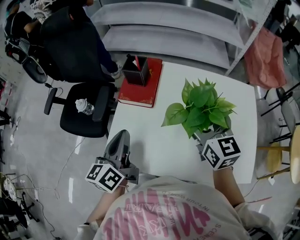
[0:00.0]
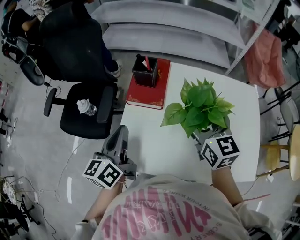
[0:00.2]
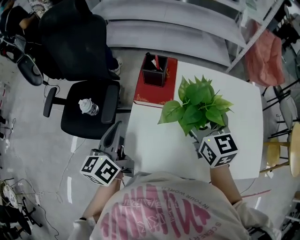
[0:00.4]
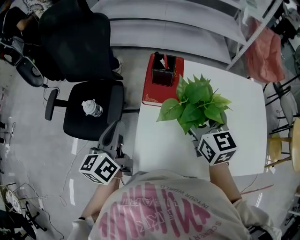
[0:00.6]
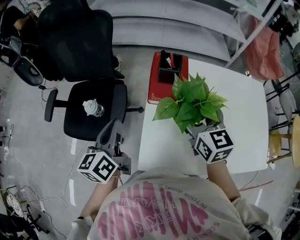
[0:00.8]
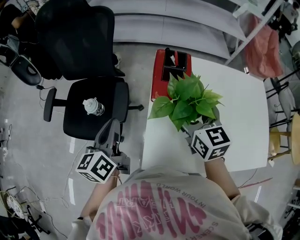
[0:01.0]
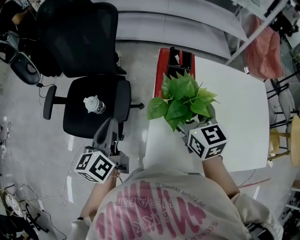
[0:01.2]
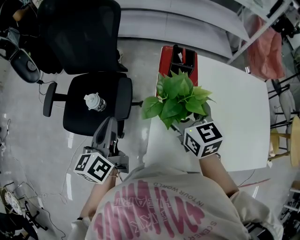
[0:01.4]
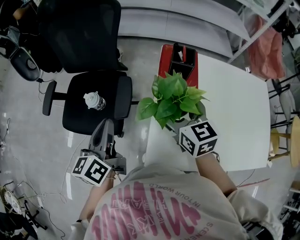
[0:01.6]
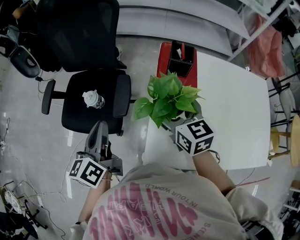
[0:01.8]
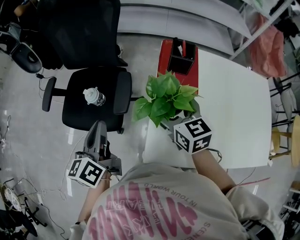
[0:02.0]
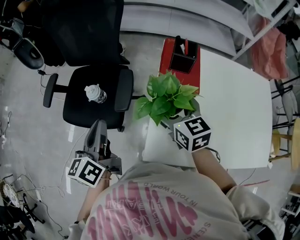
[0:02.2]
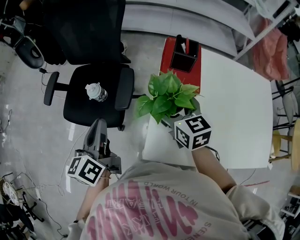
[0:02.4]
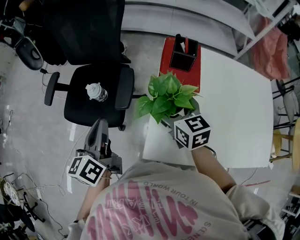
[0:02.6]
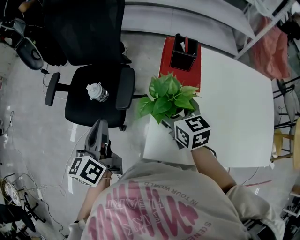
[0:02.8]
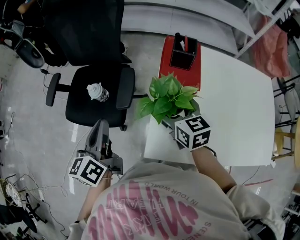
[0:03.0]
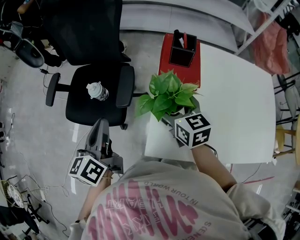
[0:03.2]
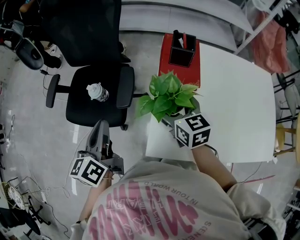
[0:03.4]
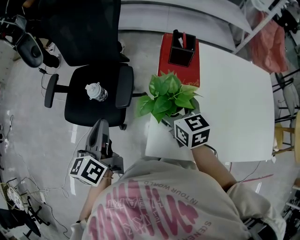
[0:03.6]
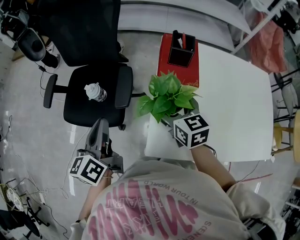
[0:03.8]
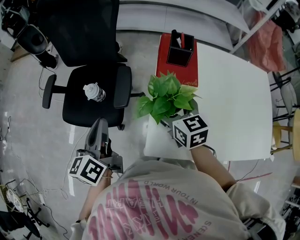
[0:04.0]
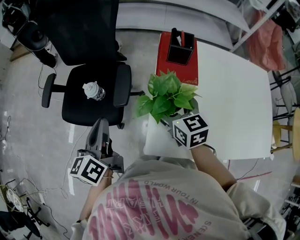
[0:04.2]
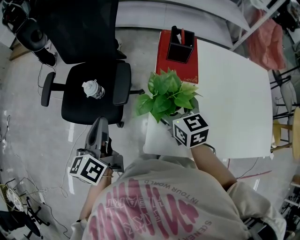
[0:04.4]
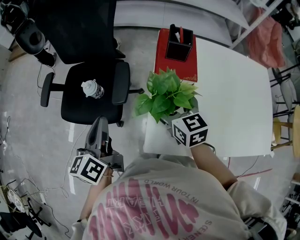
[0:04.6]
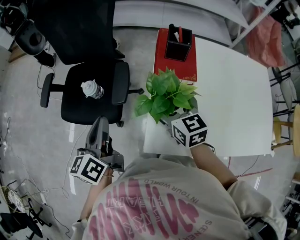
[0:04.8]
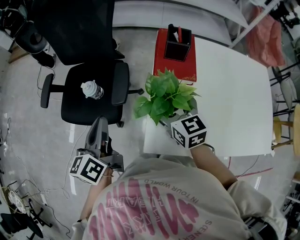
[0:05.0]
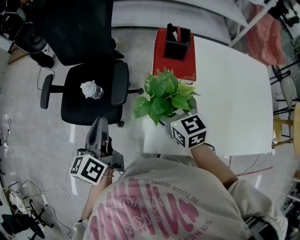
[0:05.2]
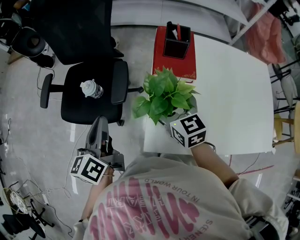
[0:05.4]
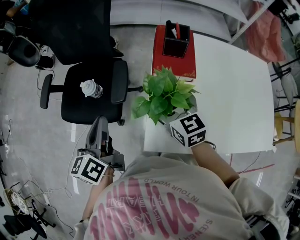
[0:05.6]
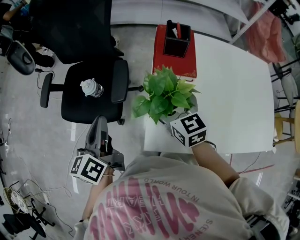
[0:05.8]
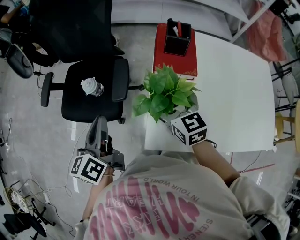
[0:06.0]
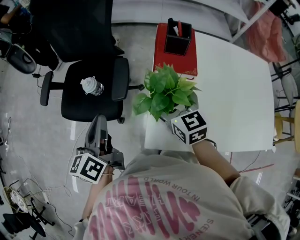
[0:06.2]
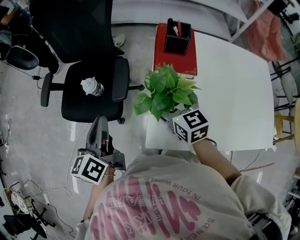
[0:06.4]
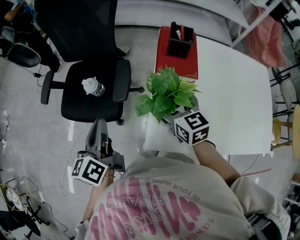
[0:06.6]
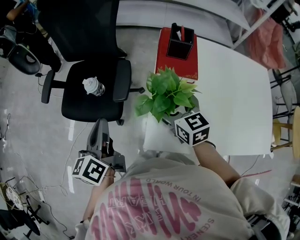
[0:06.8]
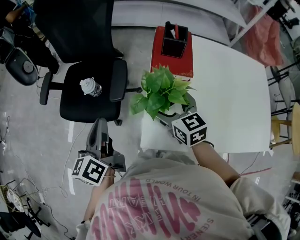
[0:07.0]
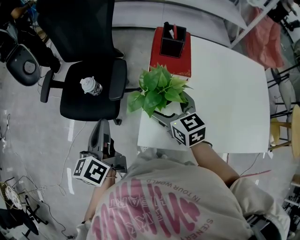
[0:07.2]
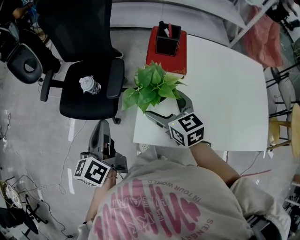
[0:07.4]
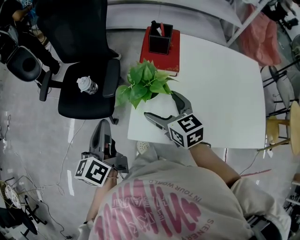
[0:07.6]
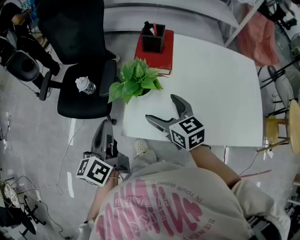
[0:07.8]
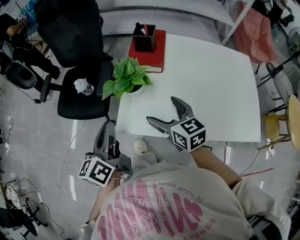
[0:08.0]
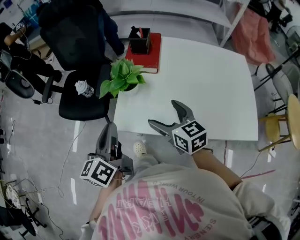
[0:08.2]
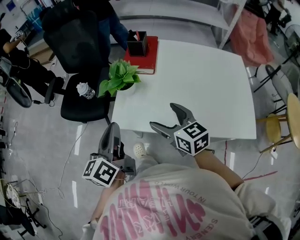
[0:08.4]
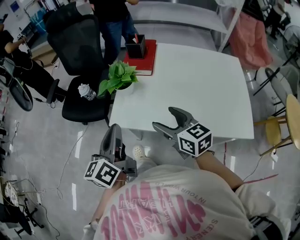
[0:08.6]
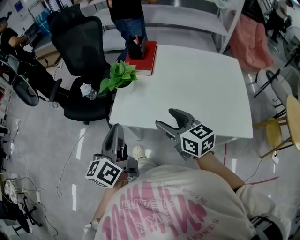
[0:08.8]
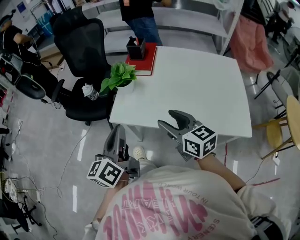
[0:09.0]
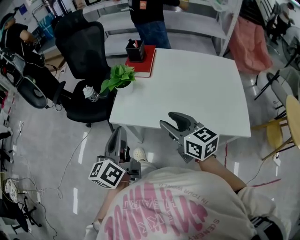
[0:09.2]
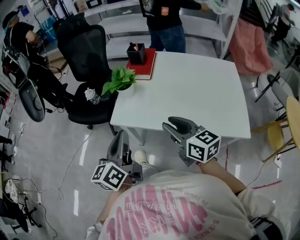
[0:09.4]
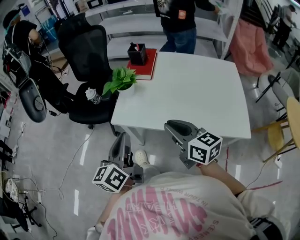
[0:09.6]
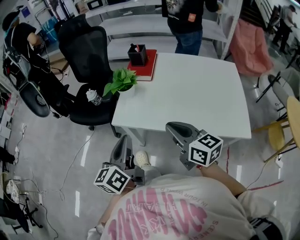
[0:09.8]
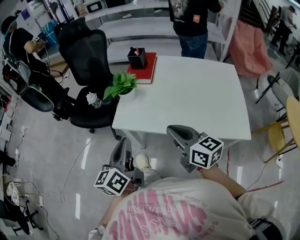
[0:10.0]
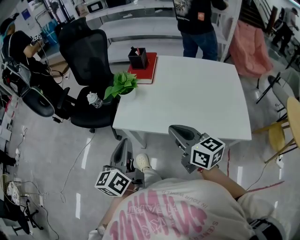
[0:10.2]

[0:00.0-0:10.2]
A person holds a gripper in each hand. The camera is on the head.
0:00.0 to 0:01.4: Both grippers travel together to the left, about 30 cm.
0:01.4 to 0:03.0: The left gripper is displaced backward by approximately 5 cm, while the right gripper moves downward, some 5 cm.
0:03.0 to 0:04.4: The two grippers keep their place.
0:04.4 to 0:07.2: There are only small adjustments of the grippers.
0:07.2 to 0:08.8: The grippers both shift backward and to the right by about 30 cm. The right gripper closes its fingers.
0:08.8 to 0:10.2: The grippers both shift backward by some 5 cm. The right gripper closes up.

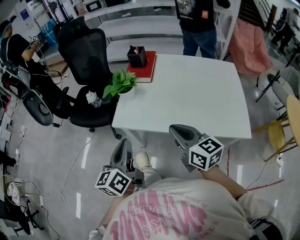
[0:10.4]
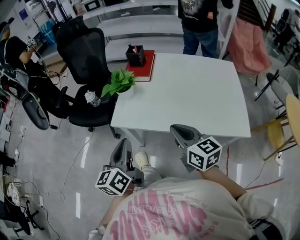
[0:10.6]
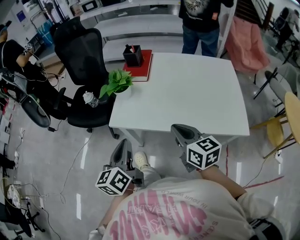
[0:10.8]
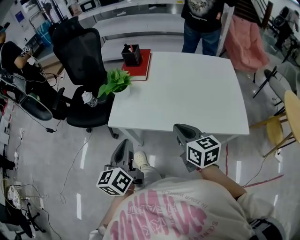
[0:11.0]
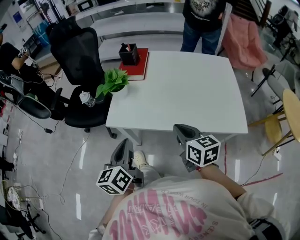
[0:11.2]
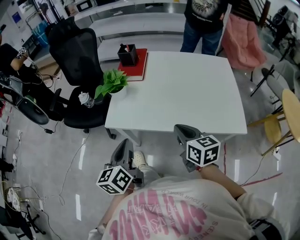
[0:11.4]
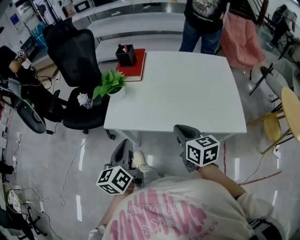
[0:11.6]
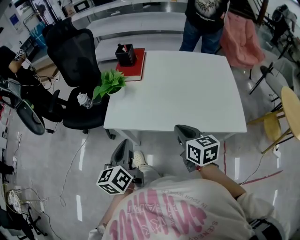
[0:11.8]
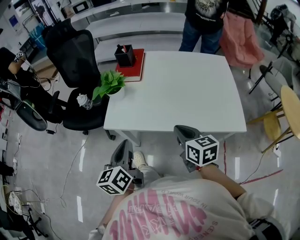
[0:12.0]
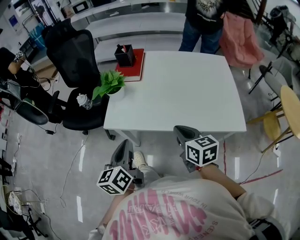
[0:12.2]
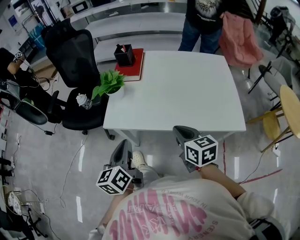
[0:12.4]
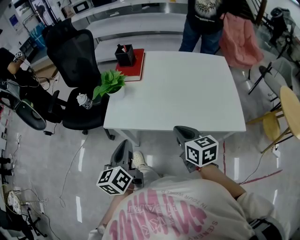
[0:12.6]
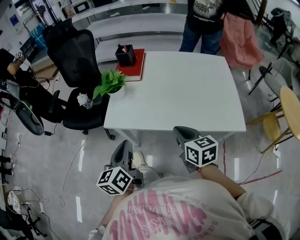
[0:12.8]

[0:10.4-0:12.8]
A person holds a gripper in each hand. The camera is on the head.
0:10.4 to 0:11.6: The right gripper travels downward and to the right by about 10 cm.
0:11.6 to 0:12.8: The grippers stay close to where they were, moving slightly.

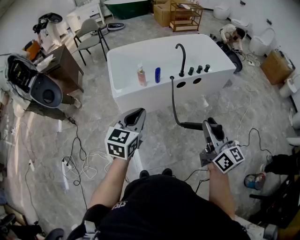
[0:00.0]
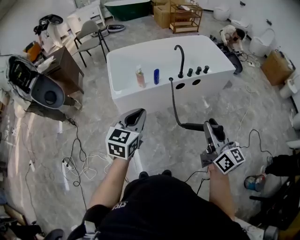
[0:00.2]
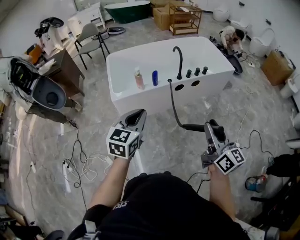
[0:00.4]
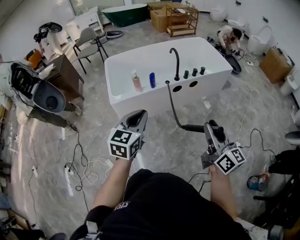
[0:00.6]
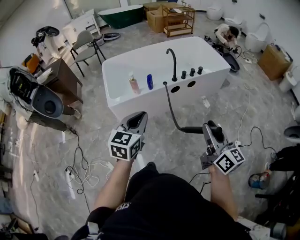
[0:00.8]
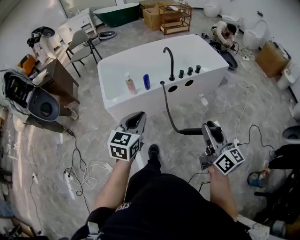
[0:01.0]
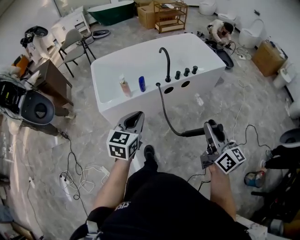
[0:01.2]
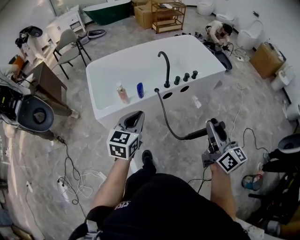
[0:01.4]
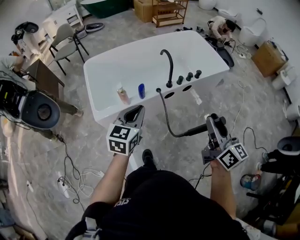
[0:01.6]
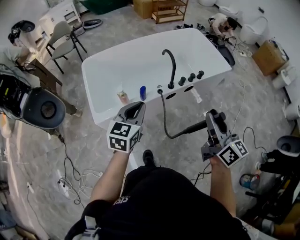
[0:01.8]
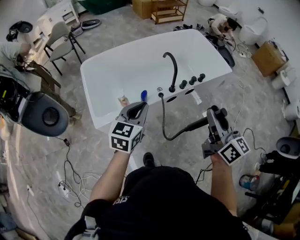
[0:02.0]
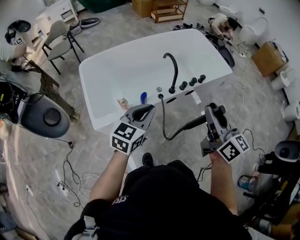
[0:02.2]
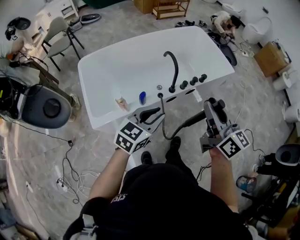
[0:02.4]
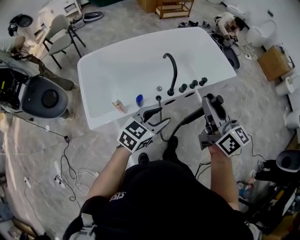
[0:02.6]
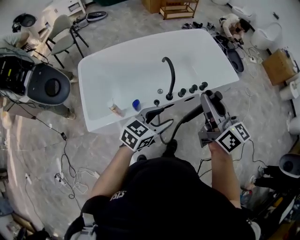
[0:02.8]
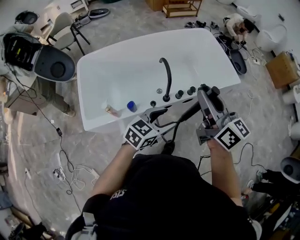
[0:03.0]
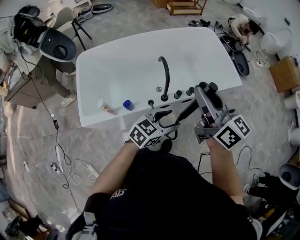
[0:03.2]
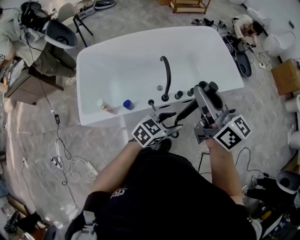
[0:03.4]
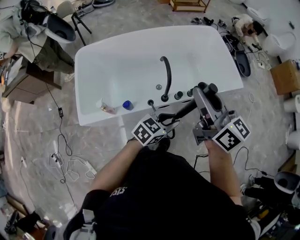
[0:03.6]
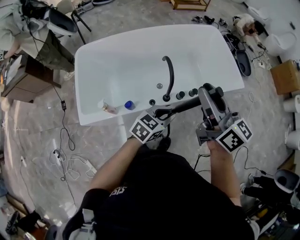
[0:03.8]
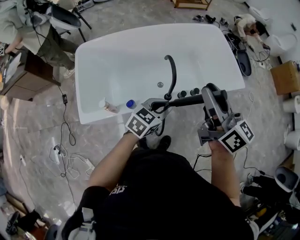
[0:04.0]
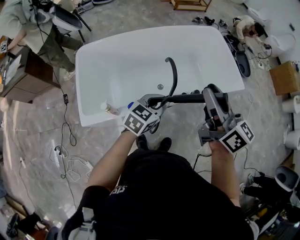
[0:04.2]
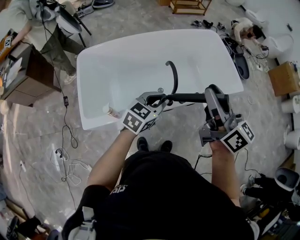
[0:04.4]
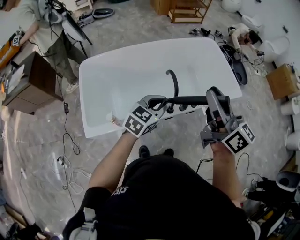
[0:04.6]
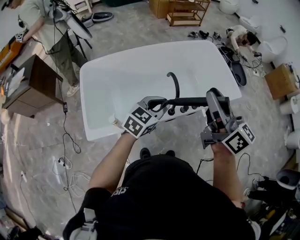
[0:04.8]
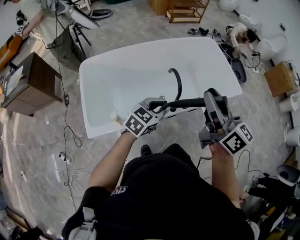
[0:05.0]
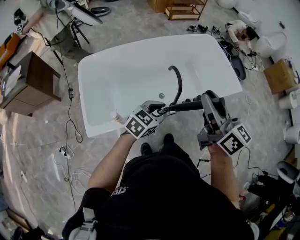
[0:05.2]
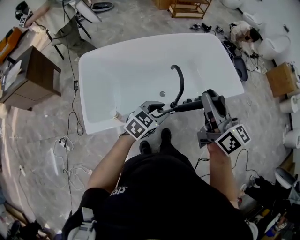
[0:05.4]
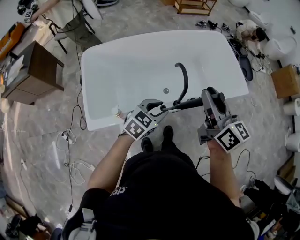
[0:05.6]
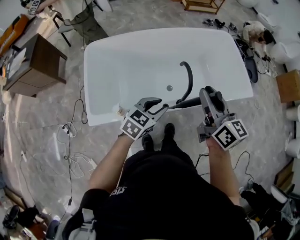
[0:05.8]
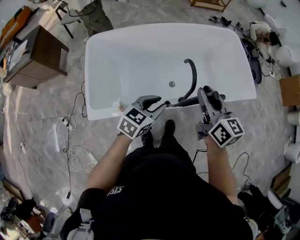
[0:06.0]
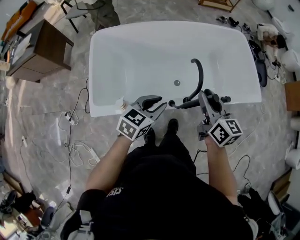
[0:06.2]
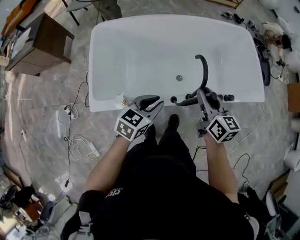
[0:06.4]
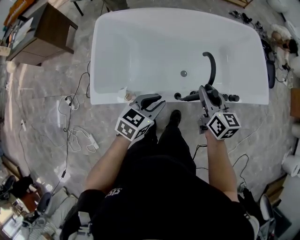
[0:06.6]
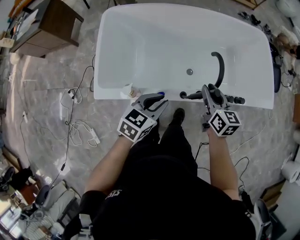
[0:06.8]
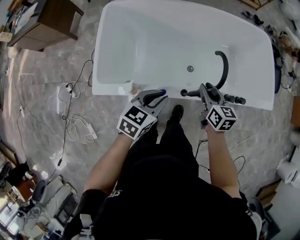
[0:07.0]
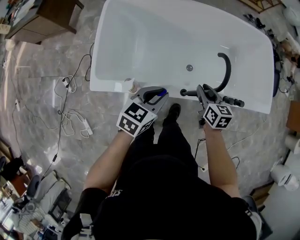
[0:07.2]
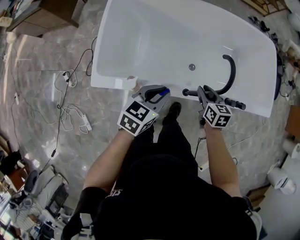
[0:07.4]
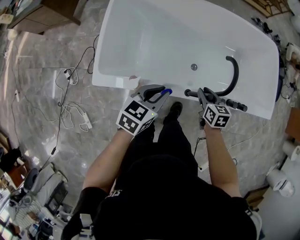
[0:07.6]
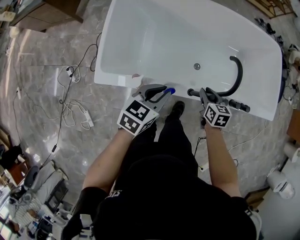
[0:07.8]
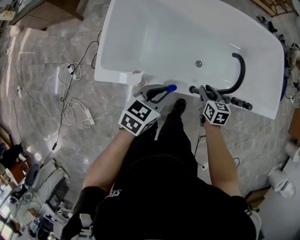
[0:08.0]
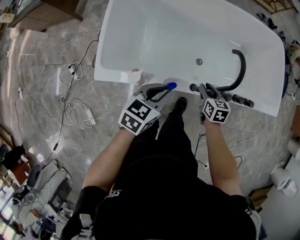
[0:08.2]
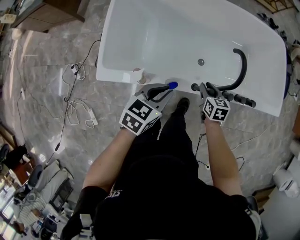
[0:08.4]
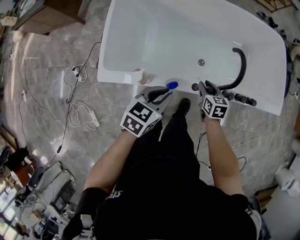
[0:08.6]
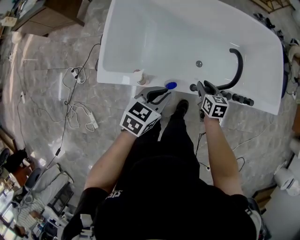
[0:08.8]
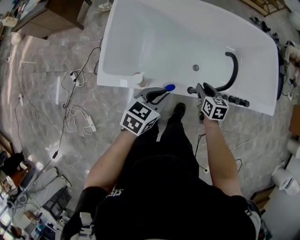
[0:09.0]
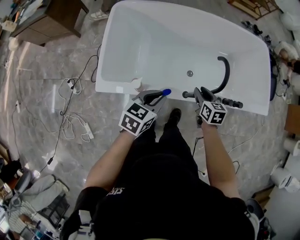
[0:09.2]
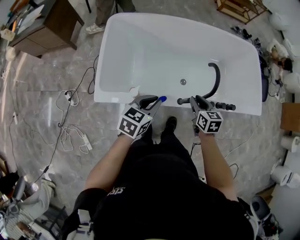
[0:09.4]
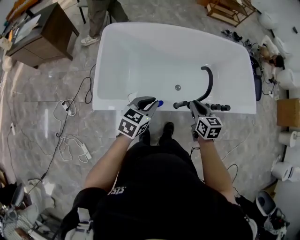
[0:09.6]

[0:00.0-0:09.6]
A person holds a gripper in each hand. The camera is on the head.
0:00.0 to 0:01.6: The two grippers go approximately 25 cm forward.
0:01.6 to 0:03.2: The left gripper travels forward and to the right by about 35 cm, turns by roughly 30 degrees, and opens its fingers. The right gripper travels forward by about 35 cm.
0:03.2 to 0:04.8: The right gripper travels to the left and upward by about 10 cm; the left gripper goes some 20 cm to the left and forward, and closes.
0:04.8 to 0:06.4: The right gripper goes roughly 25 cm downward, and swivels about 30 degrees; the left gripper heads downward and to the left, covering approximately 15 cm, and changes its angle by roughly 20 degrees.
0:06.4 to 0:08.0: The left gripper moves downward and to the left, approximately 10 cm, while the right gripper goes some 25 cm downward, and changes its angle by roughly 30 degrees.
0:08.0 to 0:09.6: The left gripper travels upward by about 10 cm. Meanwhile the right gripper heads upward, covering about 15 cm.

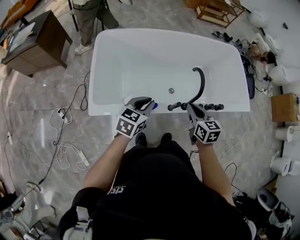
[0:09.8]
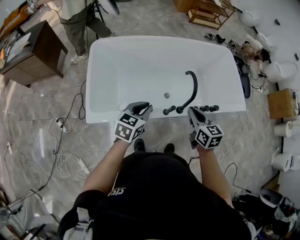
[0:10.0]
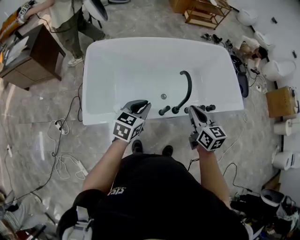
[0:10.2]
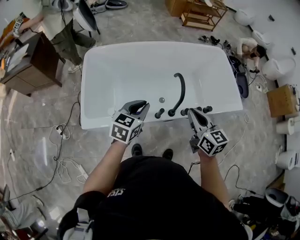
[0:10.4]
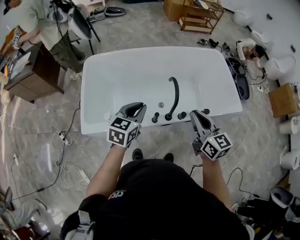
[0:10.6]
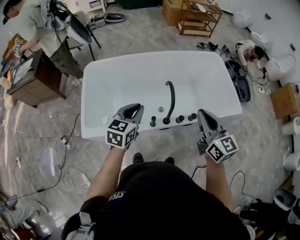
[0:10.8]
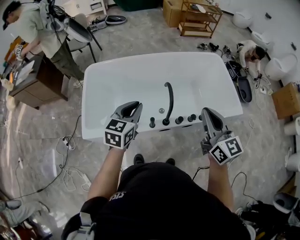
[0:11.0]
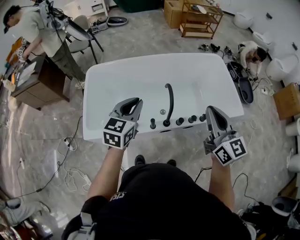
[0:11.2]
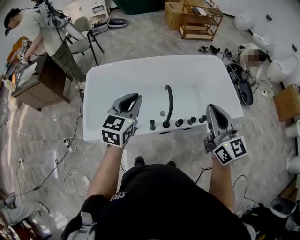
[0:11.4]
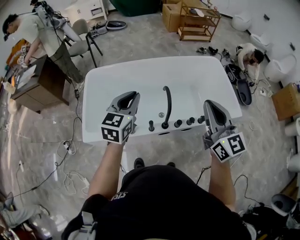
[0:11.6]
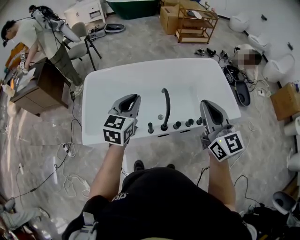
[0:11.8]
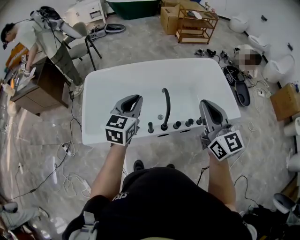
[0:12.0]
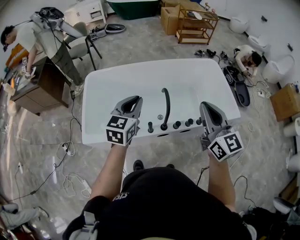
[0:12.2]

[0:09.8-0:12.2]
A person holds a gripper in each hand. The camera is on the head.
0:09.8 to 0:11.0: The right gripper goes roughly 30 cm upward and to the right, and tips its fingers upward by approximately 30 degrees; the left gripper travels to the right and upward by about 20 cm.
0:11.0 to 0:12.2: The left gripper heads upward, covering approximately 5 cm.
